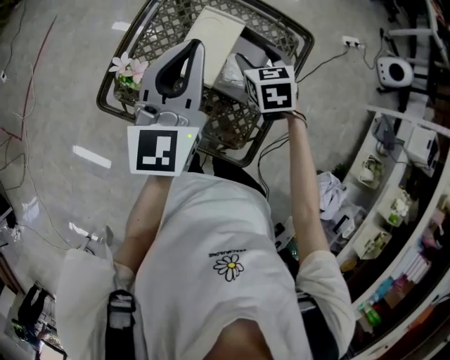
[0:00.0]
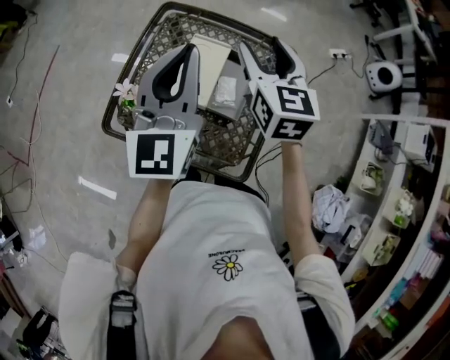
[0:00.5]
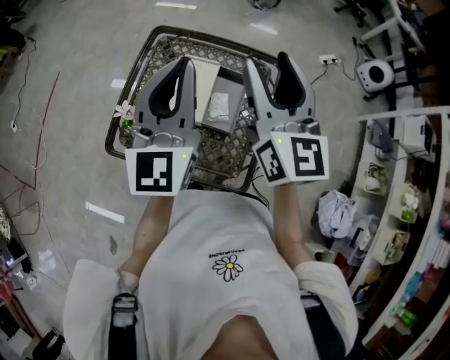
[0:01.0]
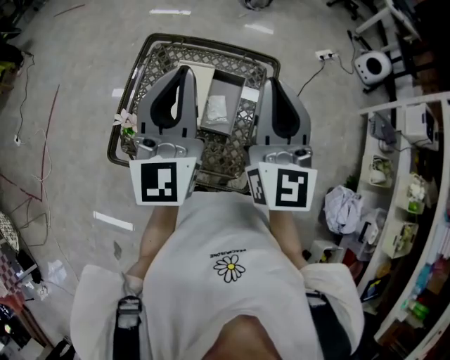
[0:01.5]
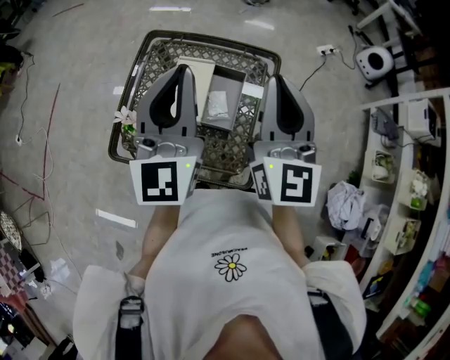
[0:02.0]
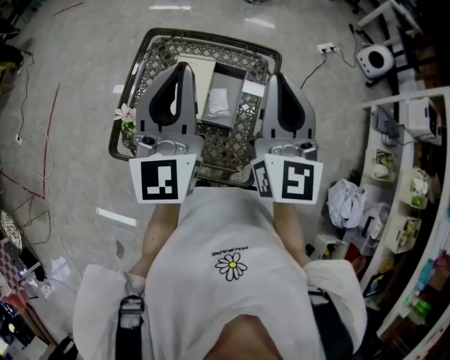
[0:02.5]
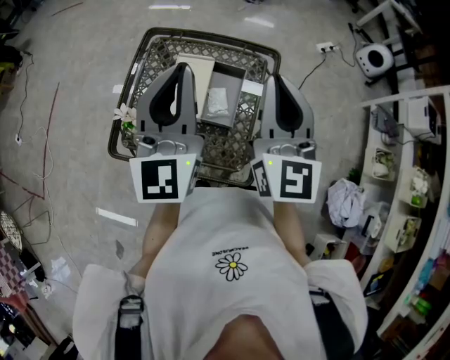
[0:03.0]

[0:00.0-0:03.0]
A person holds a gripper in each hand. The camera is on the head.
0:00.0 to 0:01.5: The left gripper heads upward and to the right, covering some 10 cm. The right gripper travels upward by roughly 30 cm, points its fingers about 50 degrees further upward, and closes up.
0:01.5 to 0:03.0: The grippers move only a little.

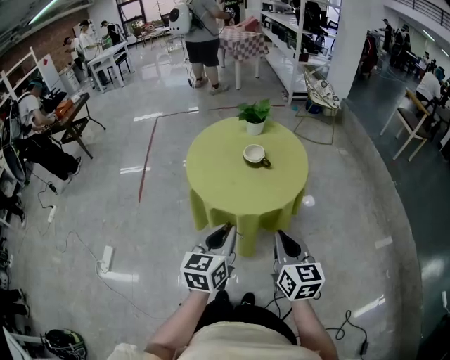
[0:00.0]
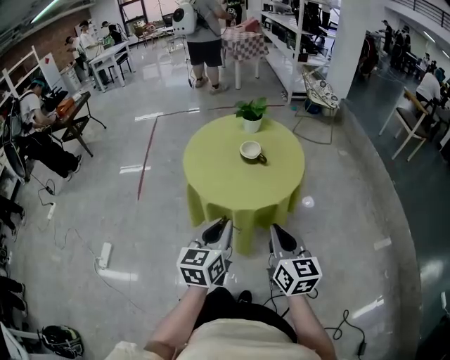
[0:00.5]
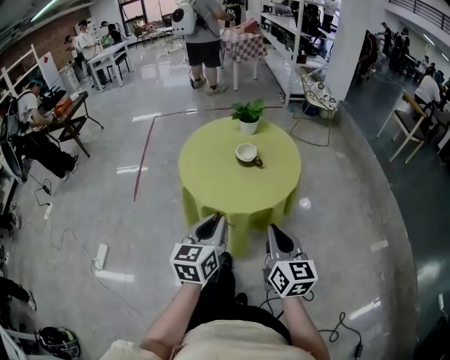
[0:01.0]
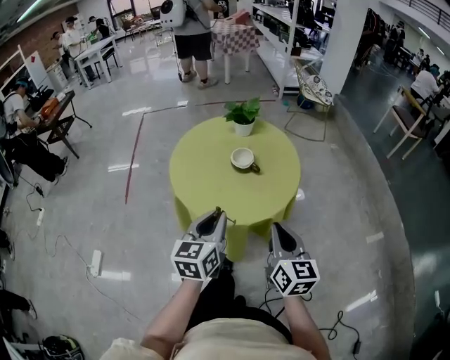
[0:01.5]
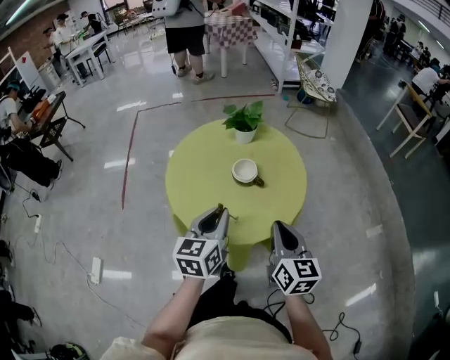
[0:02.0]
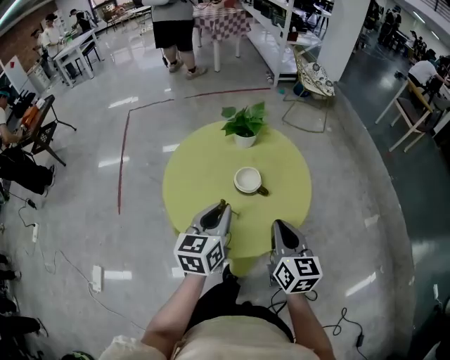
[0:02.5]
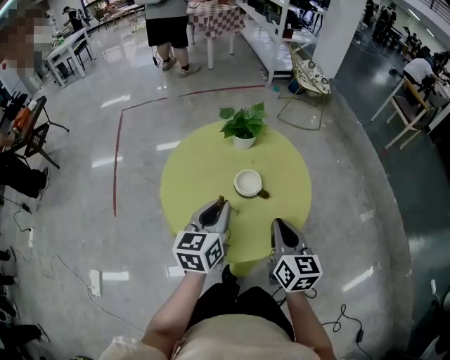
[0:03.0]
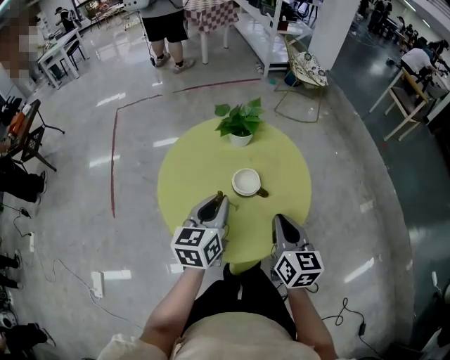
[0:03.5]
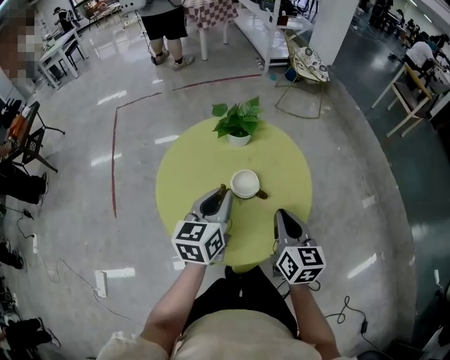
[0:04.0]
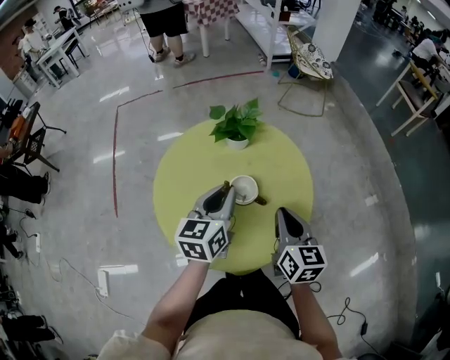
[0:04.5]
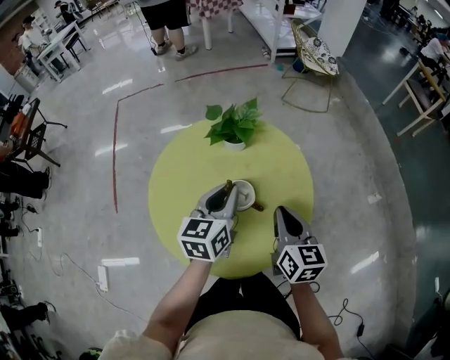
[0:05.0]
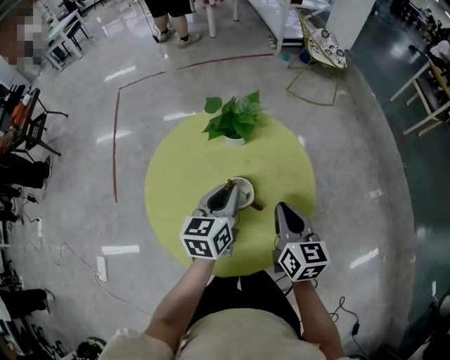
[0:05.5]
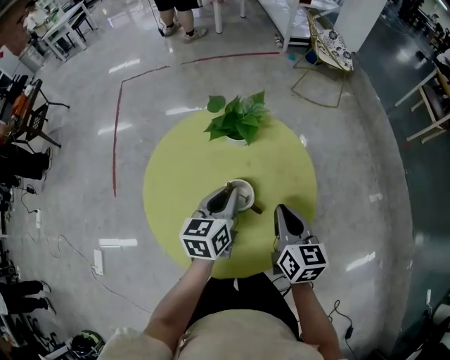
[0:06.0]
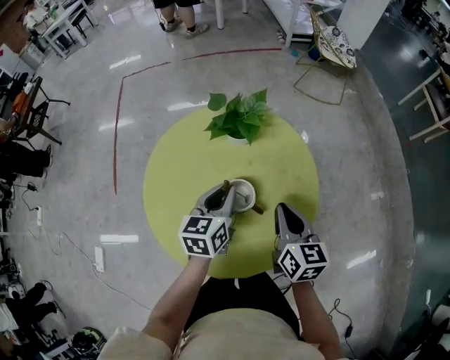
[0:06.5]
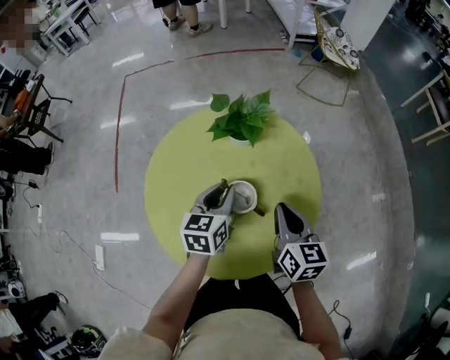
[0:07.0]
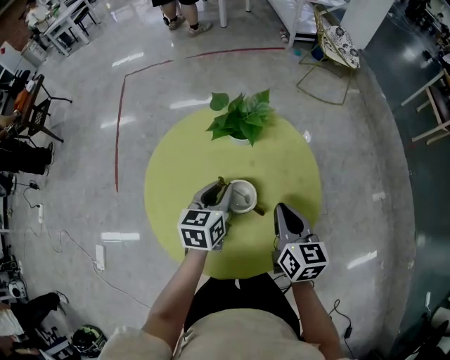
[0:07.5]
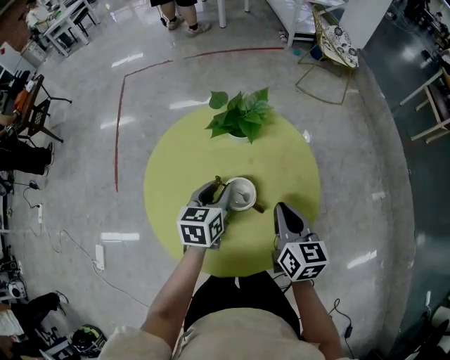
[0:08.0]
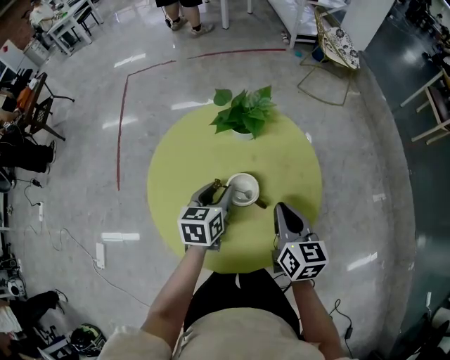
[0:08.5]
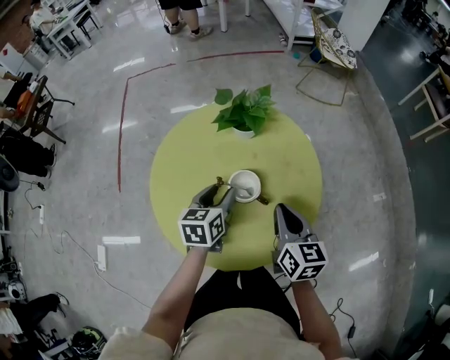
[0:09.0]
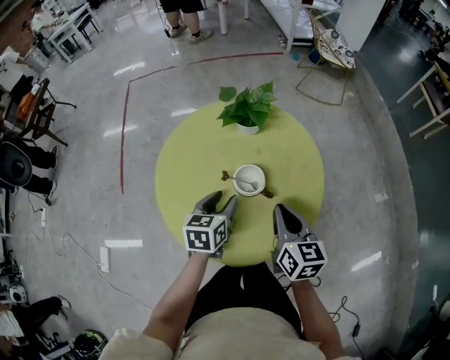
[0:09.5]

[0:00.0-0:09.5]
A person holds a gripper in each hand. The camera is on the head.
0:00.0 to 0:02.0: Both grippers travel together forward, about 20 cm.
0:02.0 to 0:04.0: Both grippers travel together forward, approximately 10 cm.
0:04.0 to 0:05.5: The left gripper travels forward and downward by about 10 cm. The right gripper heads forward, covering some 10 cm.
0:05.5 to 0:07.5: The left gripper heads downward, covering approximately 5 cm.
0:07.5 to 0:09.5: Both grippers travel together backward, roughly 5 cm. The left gripper opens up.

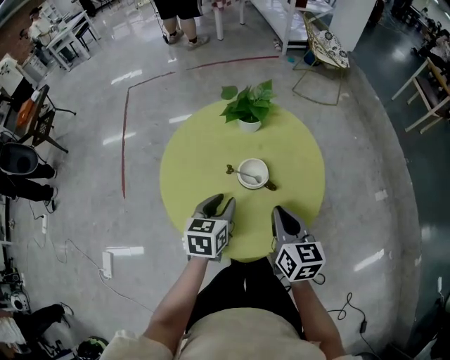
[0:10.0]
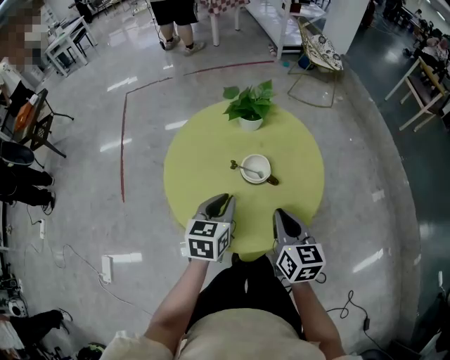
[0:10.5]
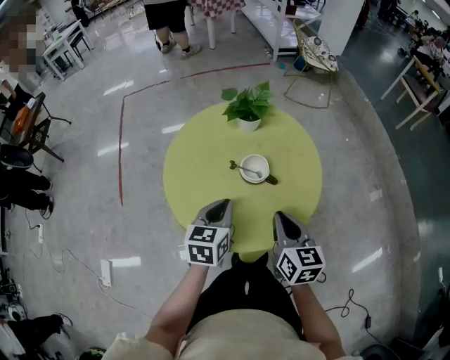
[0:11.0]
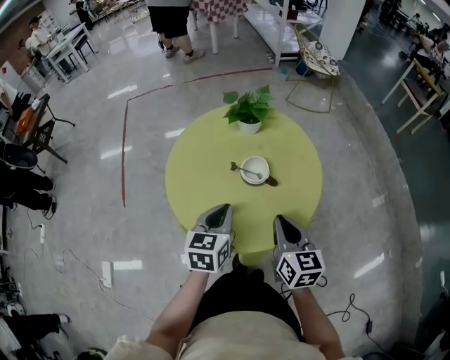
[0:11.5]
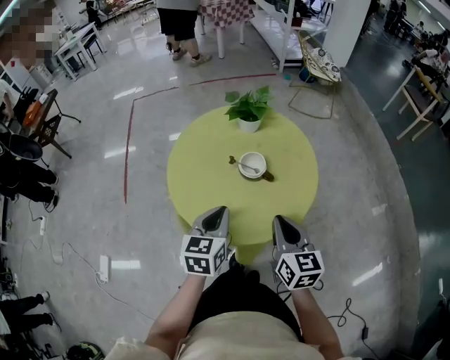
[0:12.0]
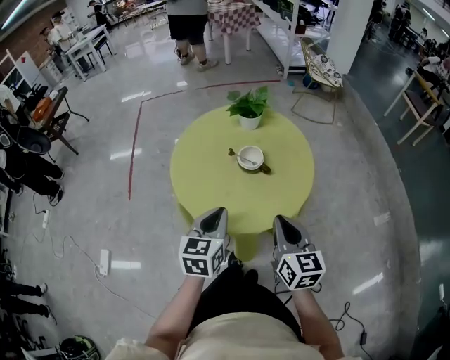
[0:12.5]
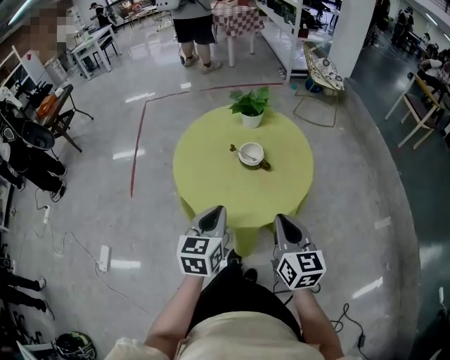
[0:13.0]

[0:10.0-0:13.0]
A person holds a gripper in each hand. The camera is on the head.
0:10.0 to 0:11.5: Both grippers travel together backward, roughly 5 cm. The left gripper closes its fingers.
0:11.5 to 0:13.0: The grippers both shift backward by roughly 10 cm.

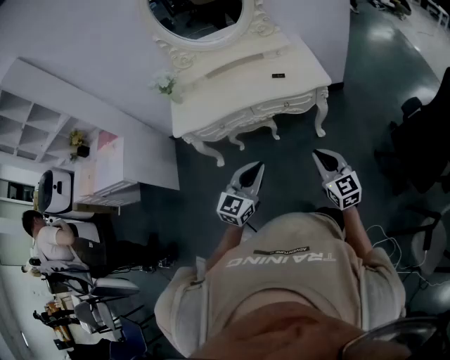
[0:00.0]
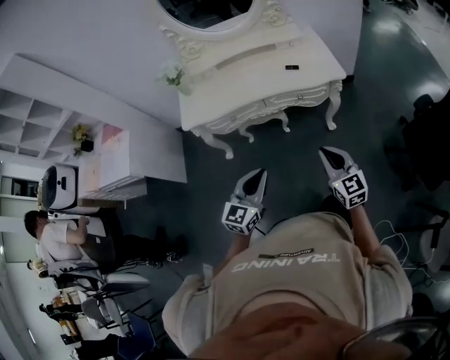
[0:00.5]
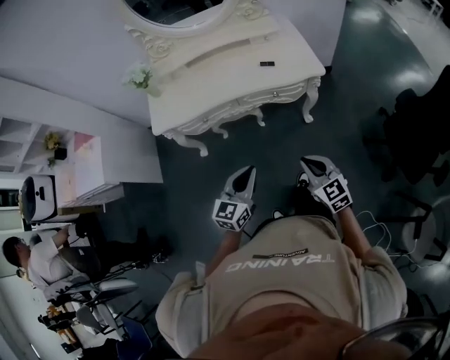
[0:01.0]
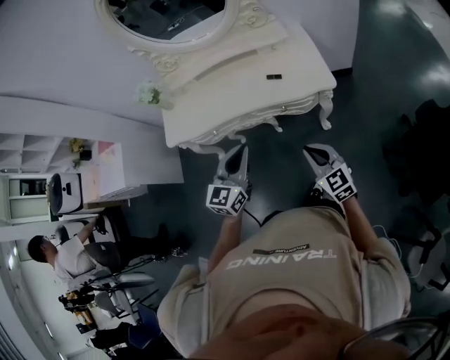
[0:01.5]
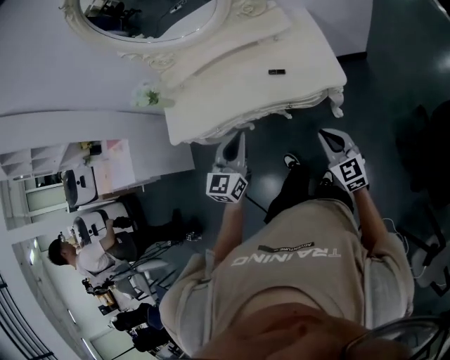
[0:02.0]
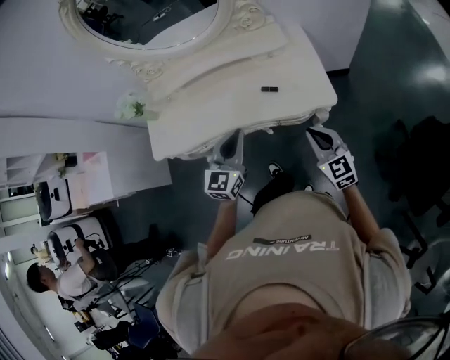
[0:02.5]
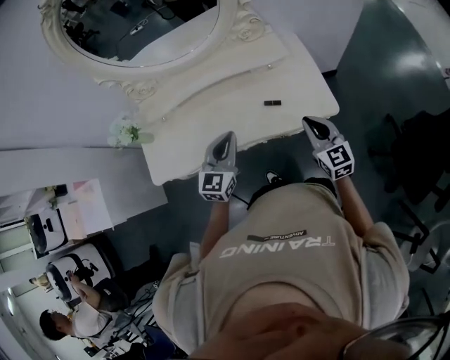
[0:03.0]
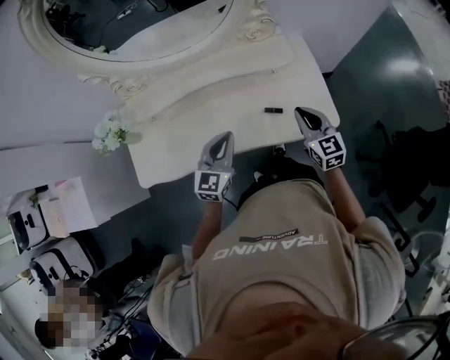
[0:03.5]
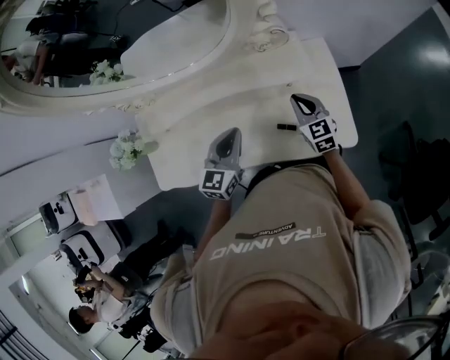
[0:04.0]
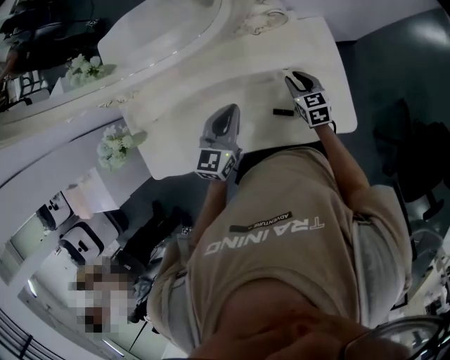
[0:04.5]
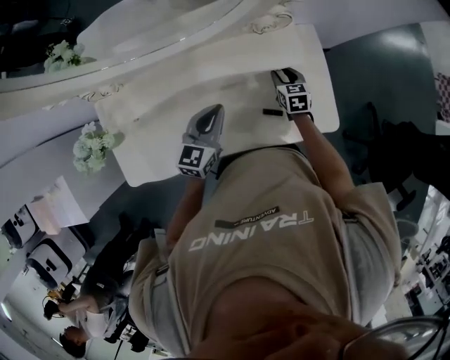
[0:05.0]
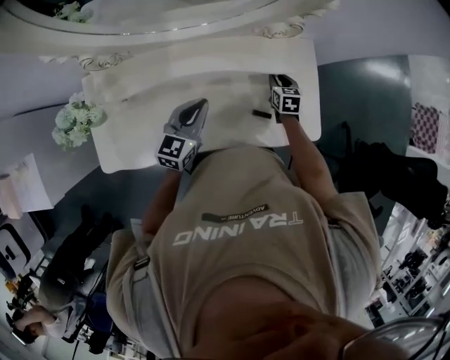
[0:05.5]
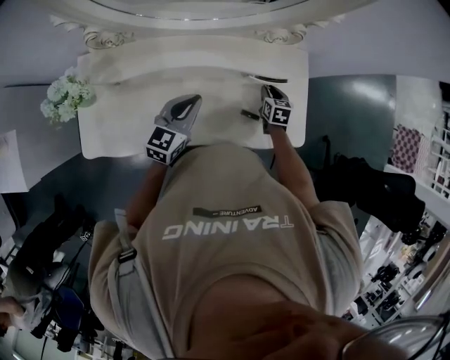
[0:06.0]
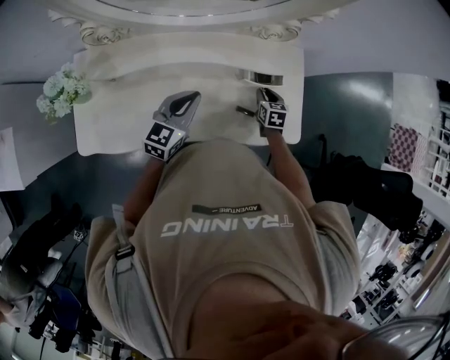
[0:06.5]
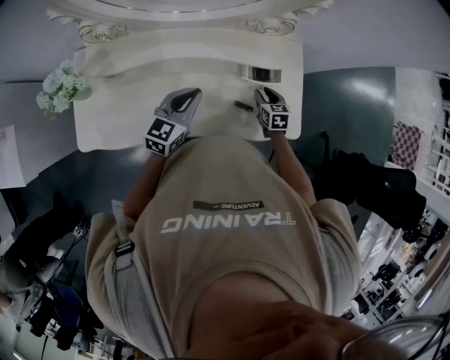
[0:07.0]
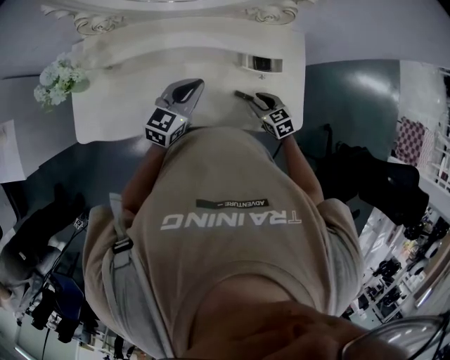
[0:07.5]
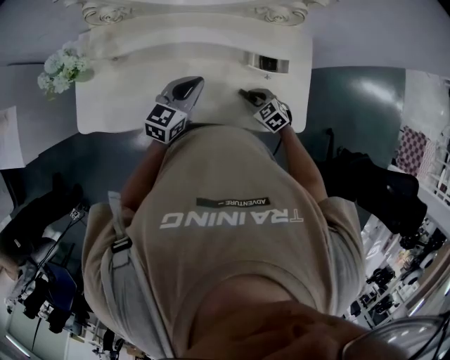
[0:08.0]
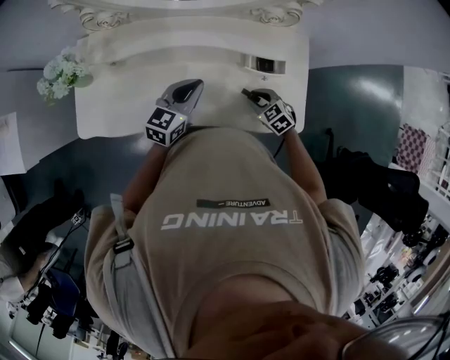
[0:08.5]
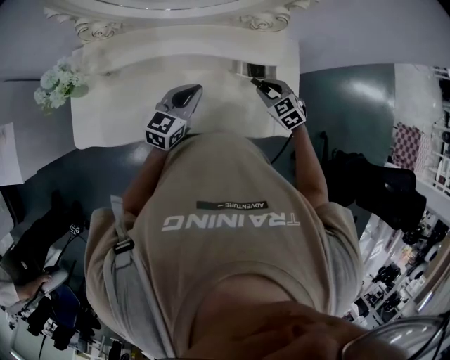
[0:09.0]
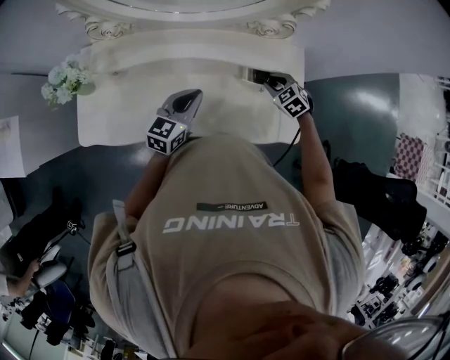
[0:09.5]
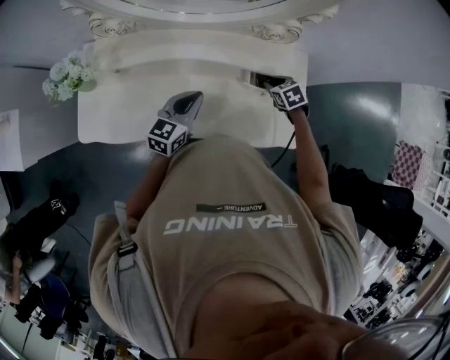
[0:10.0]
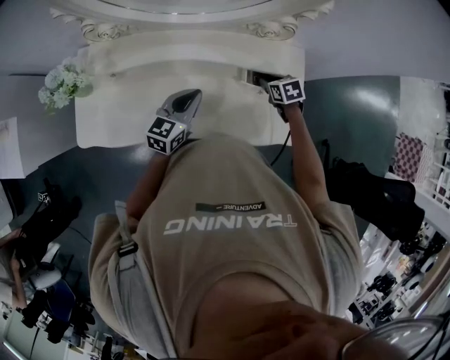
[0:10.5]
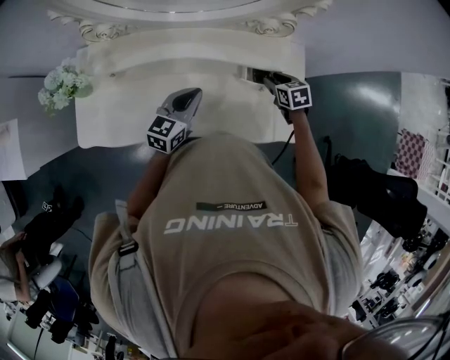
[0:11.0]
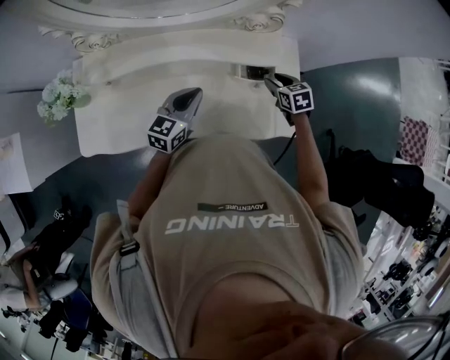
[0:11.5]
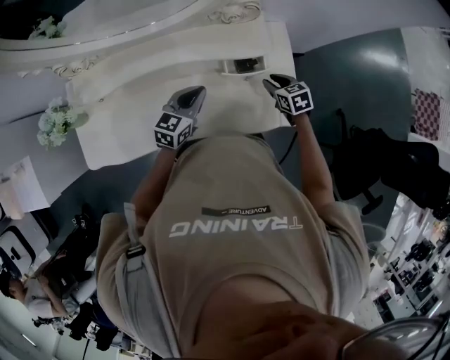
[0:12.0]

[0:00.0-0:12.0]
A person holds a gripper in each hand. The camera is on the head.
0:00.0 to 0:02.0: The left gripper heads forward, covering some 30 cm. Meanwhile the right gripper heads forward and to the right, covering roughly 30 cm.
0:02.0 to 0:04.0: Both grippers move forward, about 40 cm.
0:04.0 to 0:06.0: The right gripper is displaced downward by about 10 cm, swivels roughly 30 degrees, and opens up; the left gripper travels to the left by about 10 cm.
0:06.0 to 0:08.0: The right gripper ends up approximately 15 cm from where it was, and rolls counterclockwise, seen from behind, by roughly 40 degrees.
0:08.0 to 0:10.0: The right gripper heads forward, to the right and upward, covering roughly 15 cm, and rotates roughly 20 degrees.
0:10.0 to 0:12.0: Both grippers move to the right, roughly 10 cm. The right gripper changes its angle by about 20 degrees.
